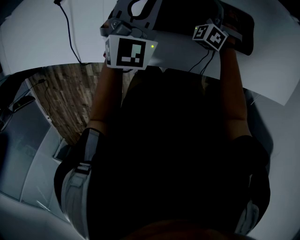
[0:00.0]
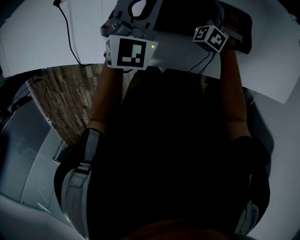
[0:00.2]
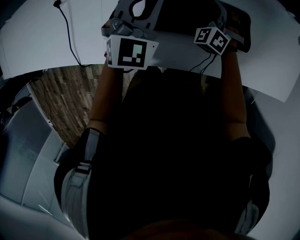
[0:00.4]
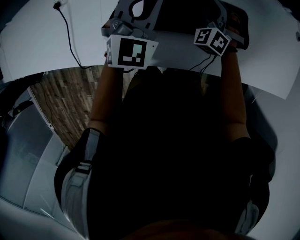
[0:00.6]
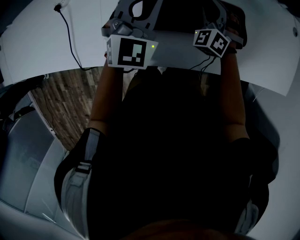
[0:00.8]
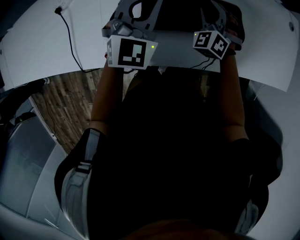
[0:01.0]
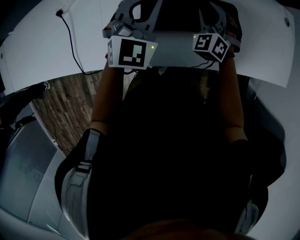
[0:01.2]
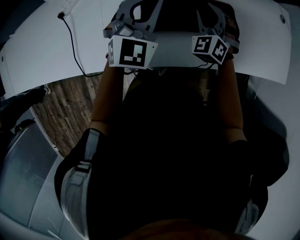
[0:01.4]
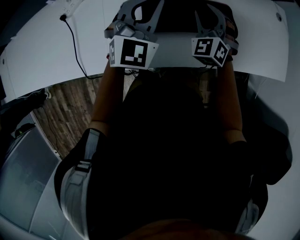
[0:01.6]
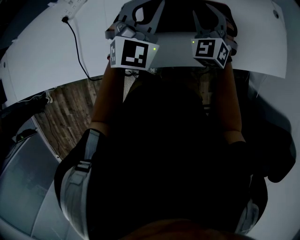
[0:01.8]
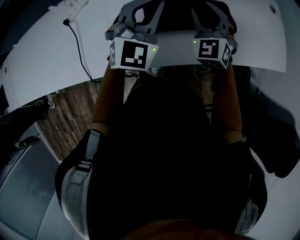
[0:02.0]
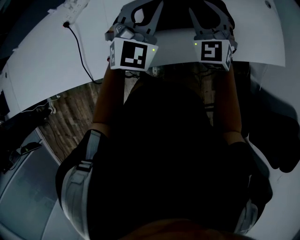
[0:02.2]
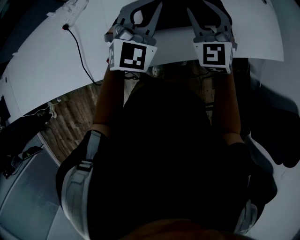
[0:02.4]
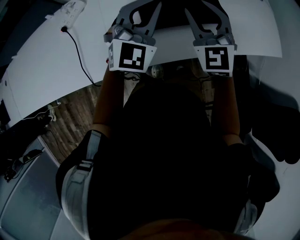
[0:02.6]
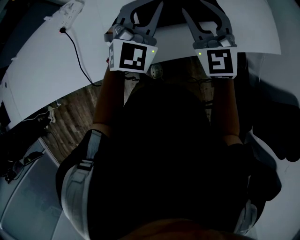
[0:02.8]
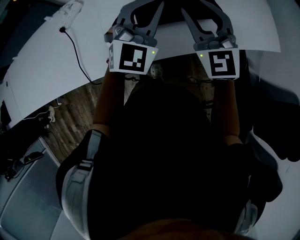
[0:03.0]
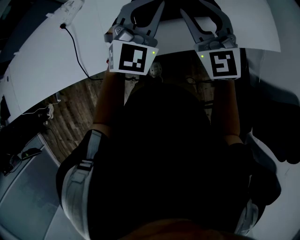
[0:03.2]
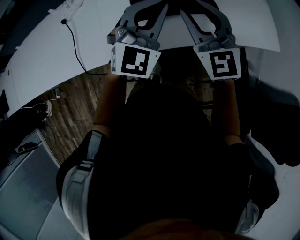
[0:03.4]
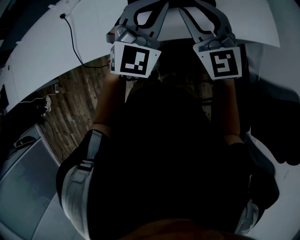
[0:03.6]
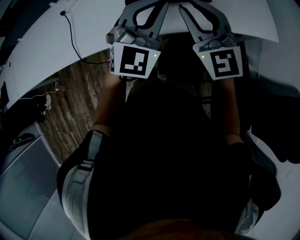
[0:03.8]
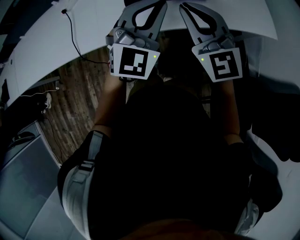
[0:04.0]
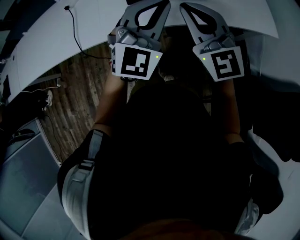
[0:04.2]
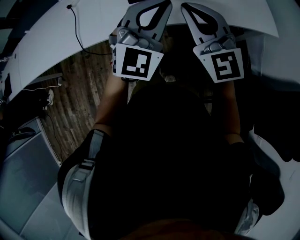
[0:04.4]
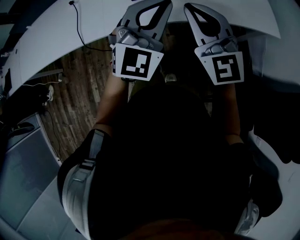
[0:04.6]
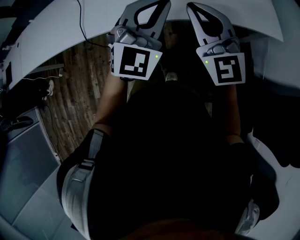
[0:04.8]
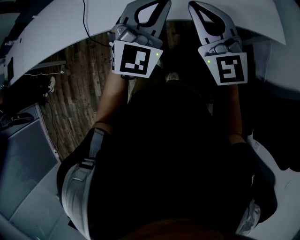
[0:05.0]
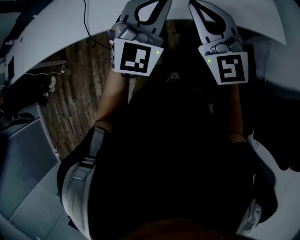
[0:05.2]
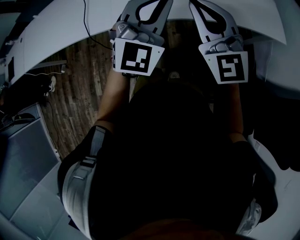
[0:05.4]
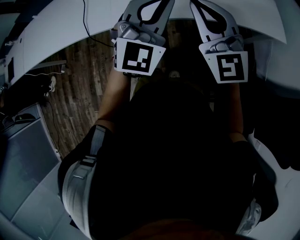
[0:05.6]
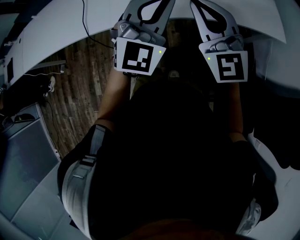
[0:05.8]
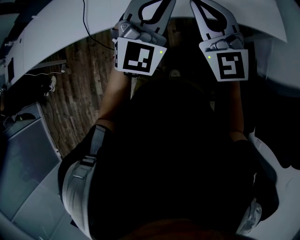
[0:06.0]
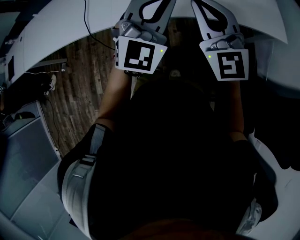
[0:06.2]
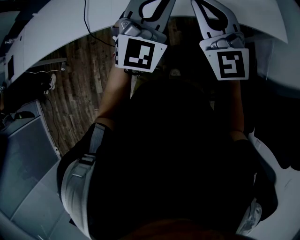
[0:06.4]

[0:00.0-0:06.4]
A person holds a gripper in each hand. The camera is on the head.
0:00.0 to 0:01.6: The left gripper is displaced upward and backward by some 10 cm. The right gripper heads upward and backward, covering approximately 20 cm, and turns by roughly 20 degrees.
0:01.6 to 0:03.2: The left gripper moves backward and upward, roughly 15 cm, while the right gripper travels upward and backward by some 25 cm, and swivels about 30 degrees.
0:03.2 to 0:04.8: The two grippers go about 20 cm backward. The right gripper closes.
0:04.8 to 0:06.4: The grippers make only small movements.

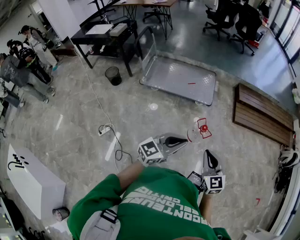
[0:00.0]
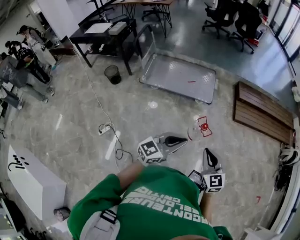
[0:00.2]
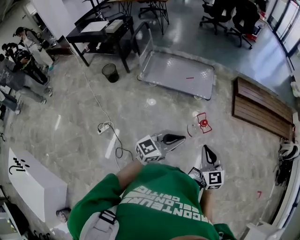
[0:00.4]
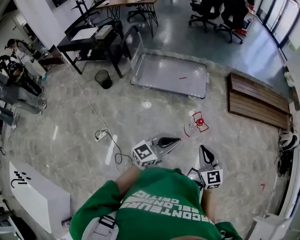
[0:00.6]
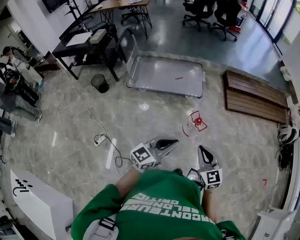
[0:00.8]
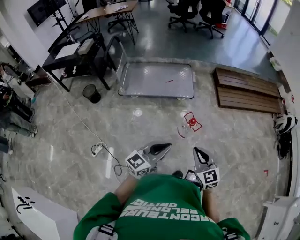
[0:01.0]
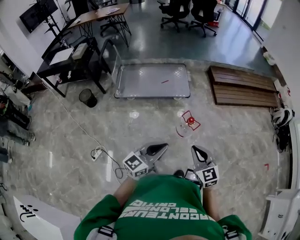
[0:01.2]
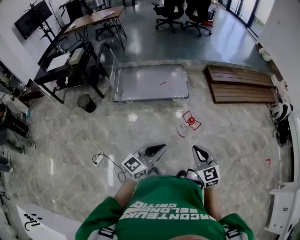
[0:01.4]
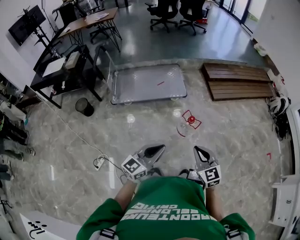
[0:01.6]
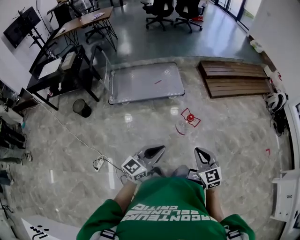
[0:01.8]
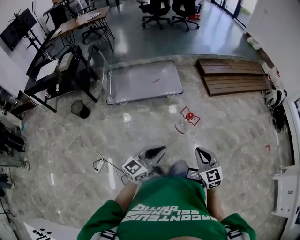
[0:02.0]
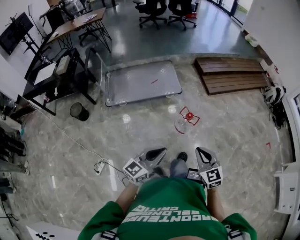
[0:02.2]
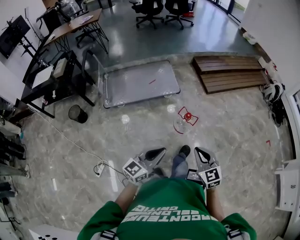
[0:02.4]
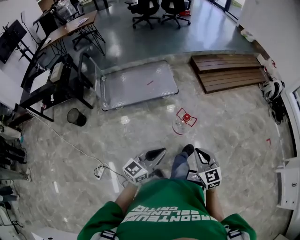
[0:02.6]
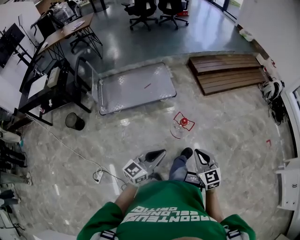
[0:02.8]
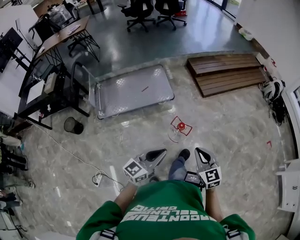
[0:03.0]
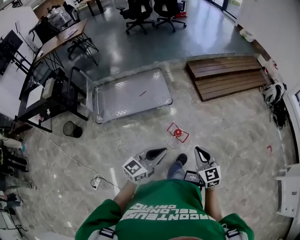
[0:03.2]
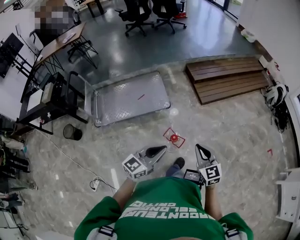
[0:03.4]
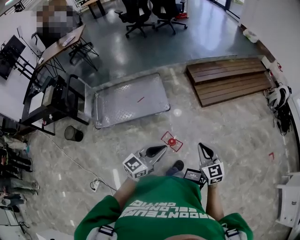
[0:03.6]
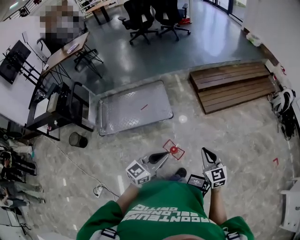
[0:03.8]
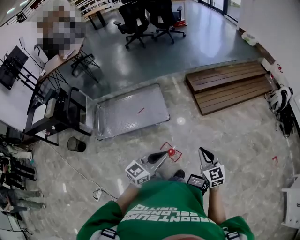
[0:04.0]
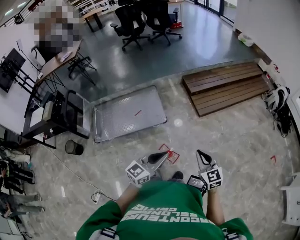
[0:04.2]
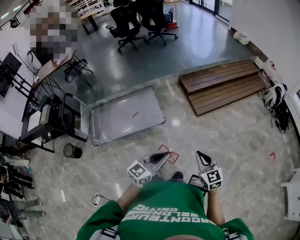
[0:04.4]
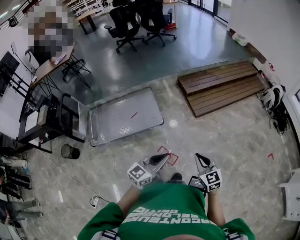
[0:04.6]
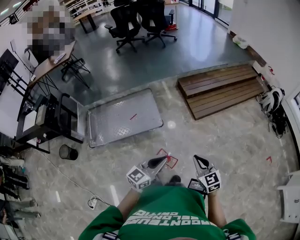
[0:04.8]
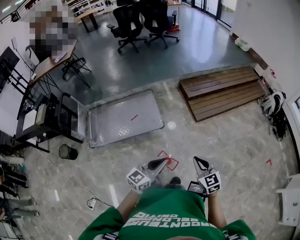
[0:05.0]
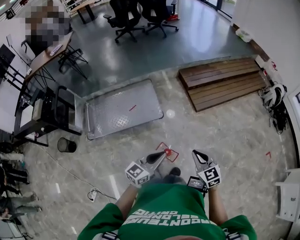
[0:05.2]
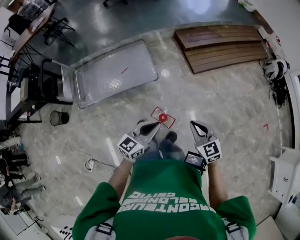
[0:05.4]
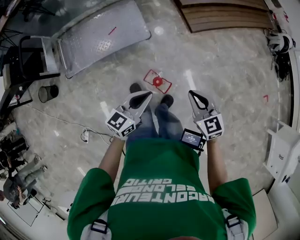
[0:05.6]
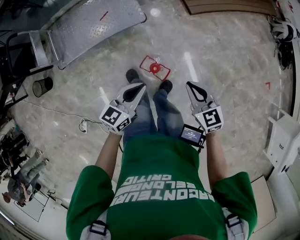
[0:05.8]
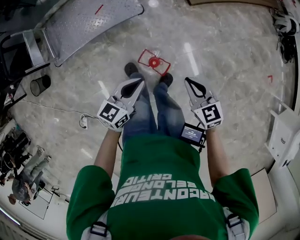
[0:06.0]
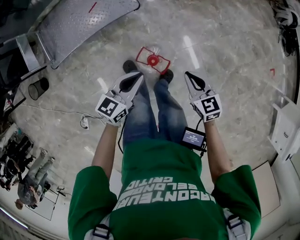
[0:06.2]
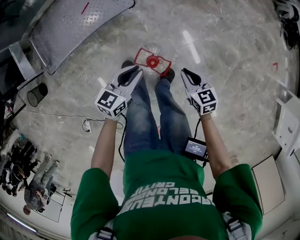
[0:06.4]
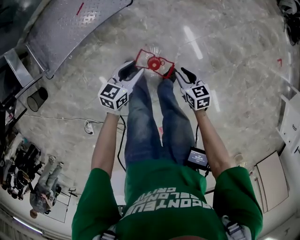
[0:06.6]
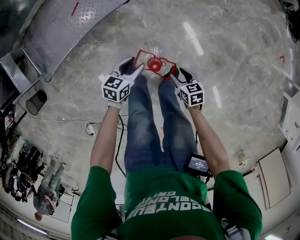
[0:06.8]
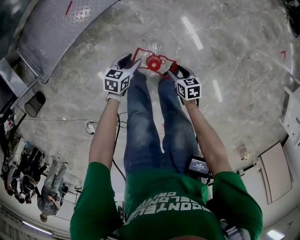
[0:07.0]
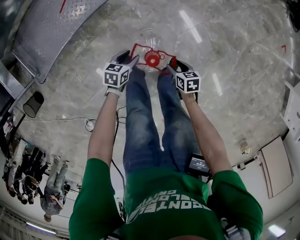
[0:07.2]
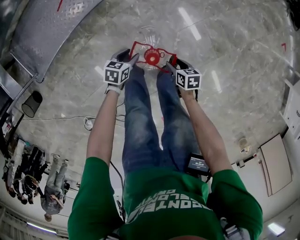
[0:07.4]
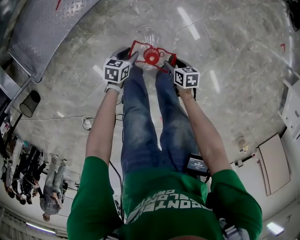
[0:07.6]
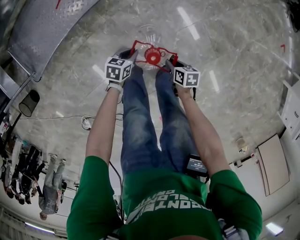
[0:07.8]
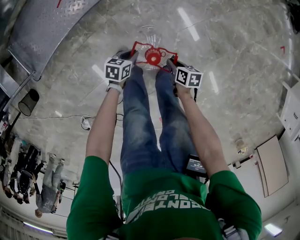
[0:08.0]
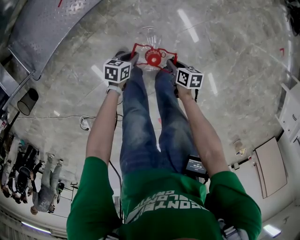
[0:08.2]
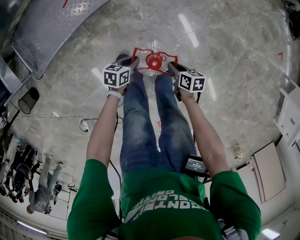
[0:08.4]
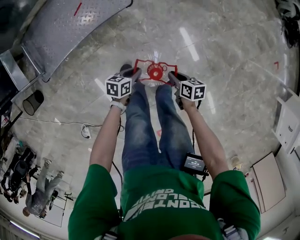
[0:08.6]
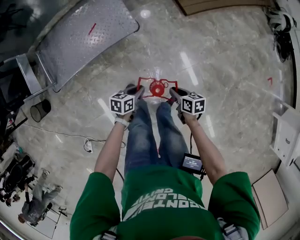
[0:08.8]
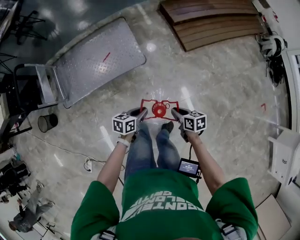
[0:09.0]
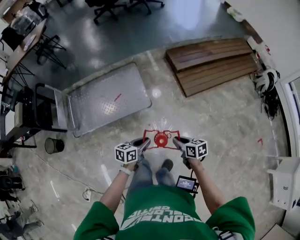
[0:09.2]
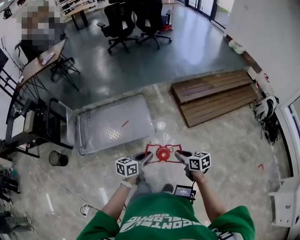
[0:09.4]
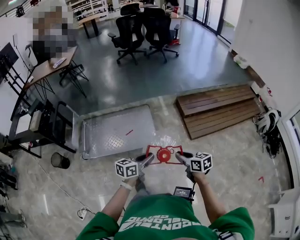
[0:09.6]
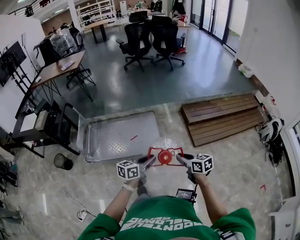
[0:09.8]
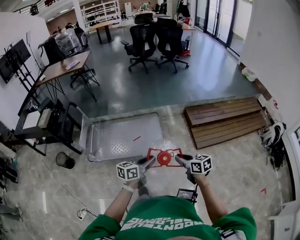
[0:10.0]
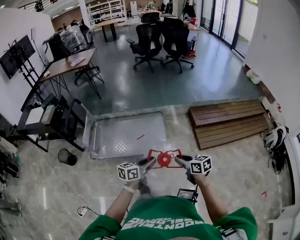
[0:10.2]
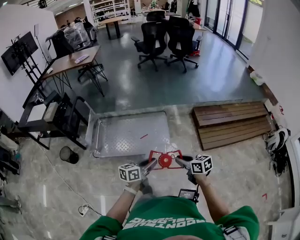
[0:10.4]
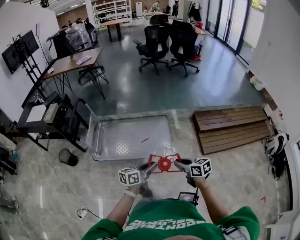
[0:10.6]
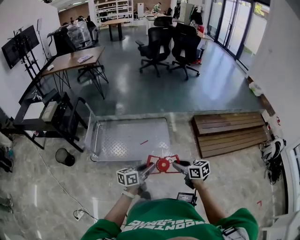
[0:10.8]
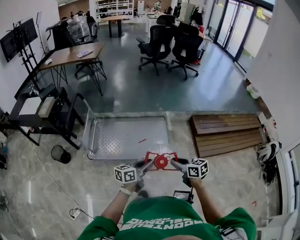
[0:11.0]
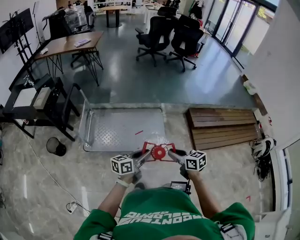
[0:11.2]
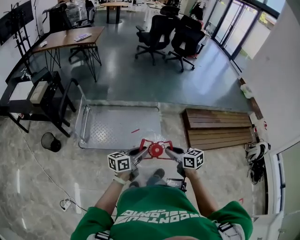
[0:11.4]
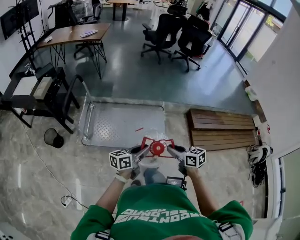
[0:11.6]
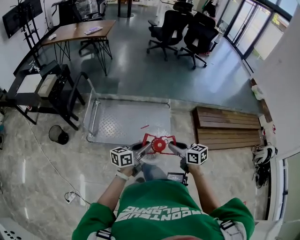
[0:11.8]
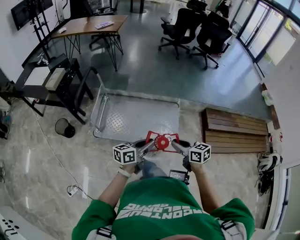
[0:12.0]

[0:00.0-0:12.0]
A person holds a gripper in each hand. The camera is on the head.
0:00.0 to 0:01.6: Both grippers travel together to the left, about 10 cm.
0:01.6 to 0:03.0: Both grippers move forward and to the right, roughly 15 cm.
0:03.0 to 0:04.4: Both grippers travel together forward and to the right, approximately 25 cm.
0:04.4 to 0:06.0: The left gripper heads downward and to the left, covering some 20 cm, and swivels approximately 20 degrees. Meanwhile the right gripper is displaced downward by roughly 15 cm, and swivels roughly 20 degrees.
0:06.0 to 0:07.6: The grippers both shift downward by roughly 40 cm. The right gripper rolls clockwise, seen from behind, by about 50 degrees, and opens up. The left gripper points its fingers about 30 degrees further downward, and opens up.
0:07.6 to 0:09.0: The two grippers go about 30 cm upward. The left gripper changes its angle by roughly 20 degrees, and closes its fingers. Meanwhile the right gripper changes its angle by roughly 20 degrees, and closes up.
0:09.0 to 0:10.4: The left gripper travels upward by about 25 cm, and rotates some 30 degrees. The right gripper goes about 30 cm upward and to the left, and rotates approximately 40 degrees.
0:10.4 to 0:12.0: The grippers both shift to the left and forward by roughly 20 cm.

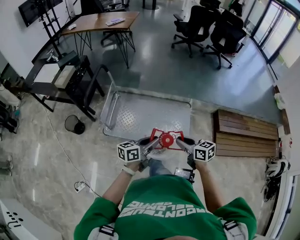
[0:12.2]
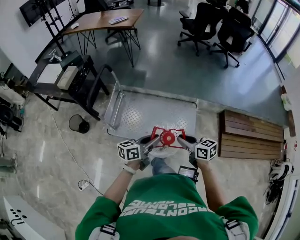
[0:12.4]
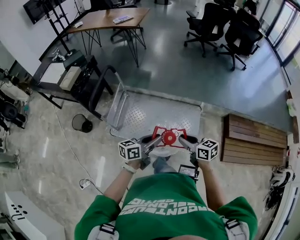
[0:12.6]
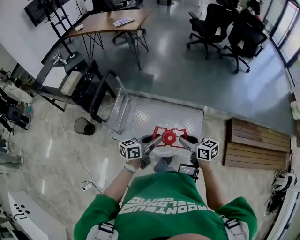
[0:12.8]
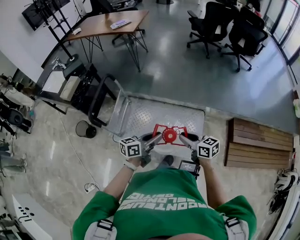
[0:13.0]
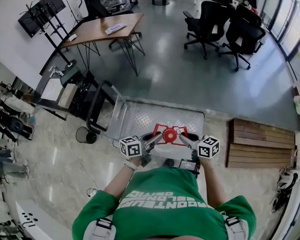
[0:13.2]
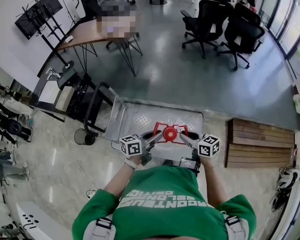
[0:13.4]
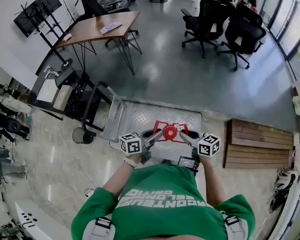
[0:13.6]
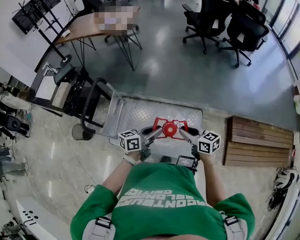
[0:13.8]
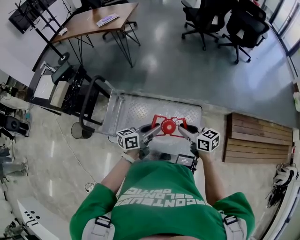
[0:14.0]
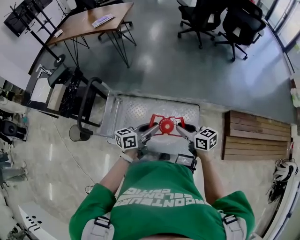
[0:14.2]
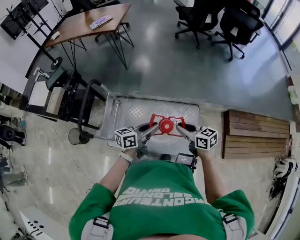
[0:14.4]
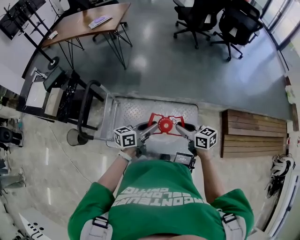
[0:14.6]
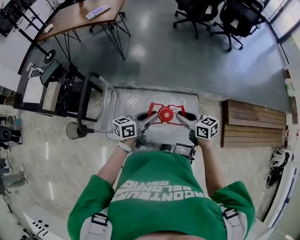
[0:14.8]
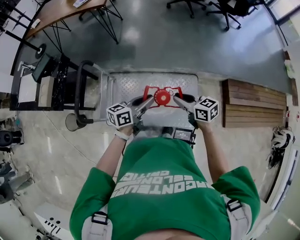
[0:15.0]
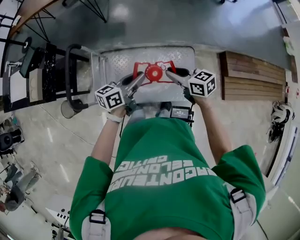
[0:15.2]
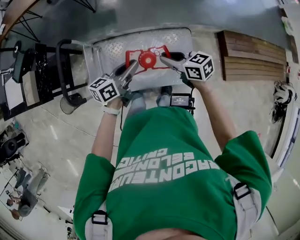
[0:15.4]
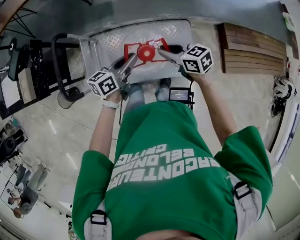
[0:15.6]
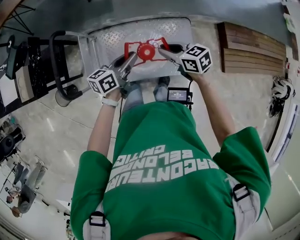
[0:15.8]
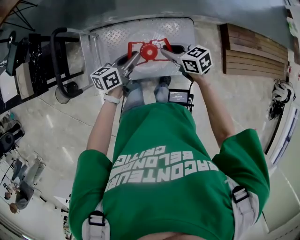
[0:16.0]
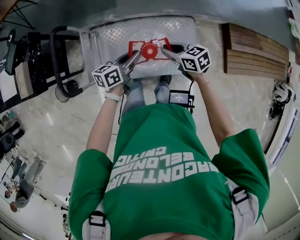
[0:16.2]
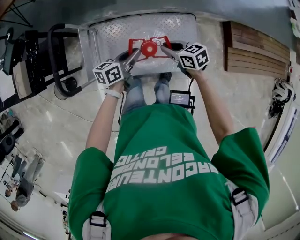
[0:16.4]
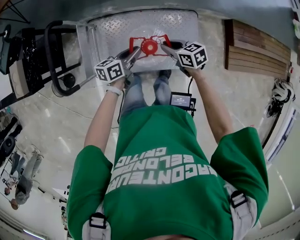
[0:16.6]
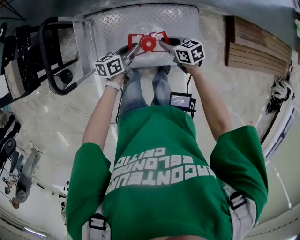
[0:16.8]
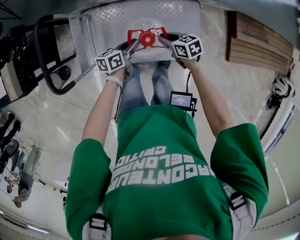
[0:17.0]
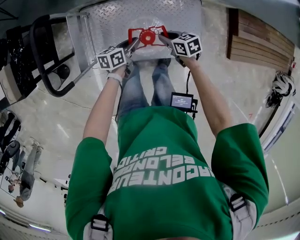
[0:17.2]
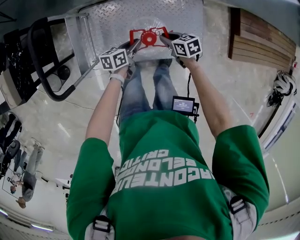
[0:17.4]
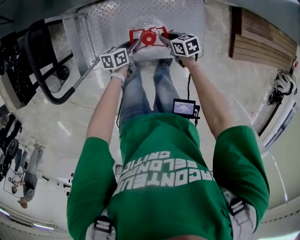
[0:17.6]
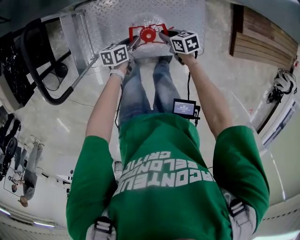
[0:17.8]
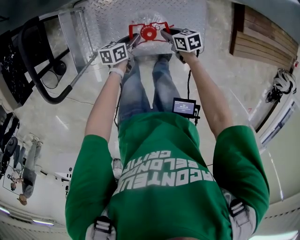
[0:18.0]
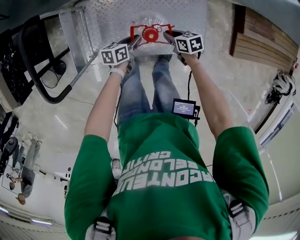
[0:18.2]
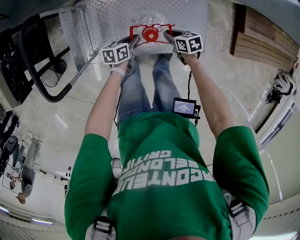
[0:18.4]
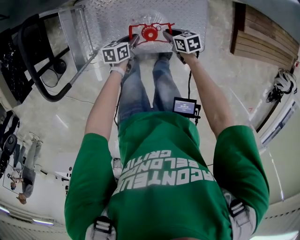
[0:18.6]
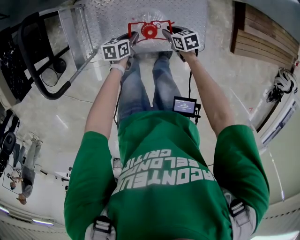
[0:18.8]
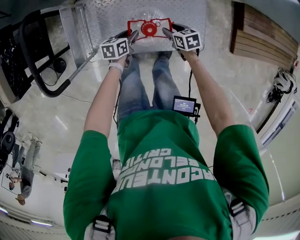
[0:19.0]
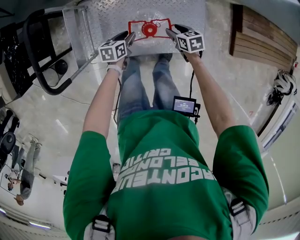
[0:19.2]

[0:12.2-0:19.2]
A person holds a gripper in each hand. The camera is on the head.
0:12.2 to 0:13.6: The two grippers go roughly 25 cm forward.
0:13.6 to 0:15.0: The two grippers go some 10 cm to the left and forward.
0:15.0 to 0:16.4: The two grippers go some 15 cm downward.
0:16.4 to 0:17.8: Both grippers travel together downward, approximately 20 cm. The left gripper turns by roughly 20 degrees.
0:17.8 to 0:19.2: The right gripper opens up; the left gripper opens.
